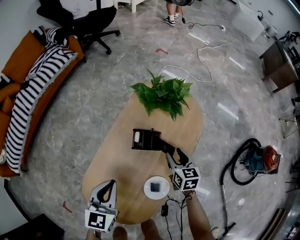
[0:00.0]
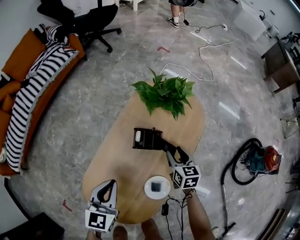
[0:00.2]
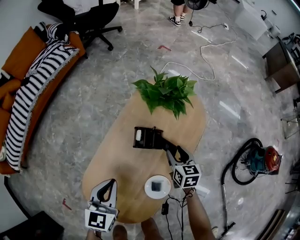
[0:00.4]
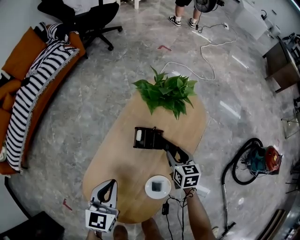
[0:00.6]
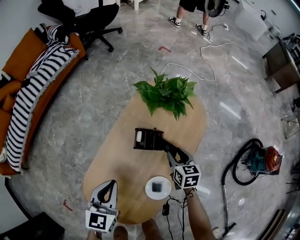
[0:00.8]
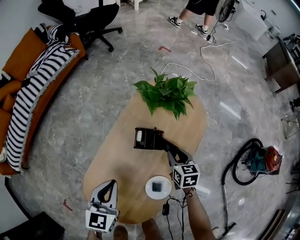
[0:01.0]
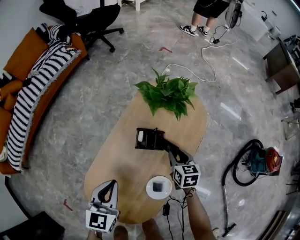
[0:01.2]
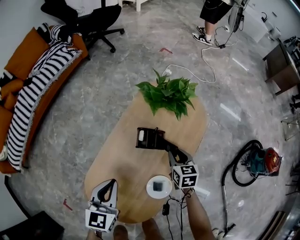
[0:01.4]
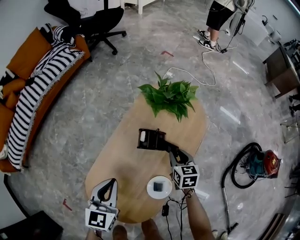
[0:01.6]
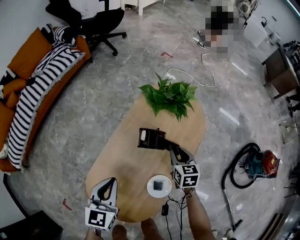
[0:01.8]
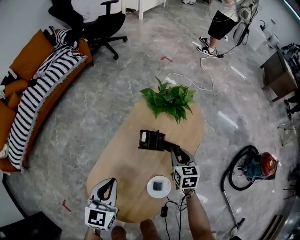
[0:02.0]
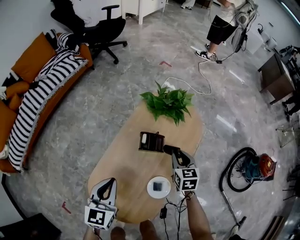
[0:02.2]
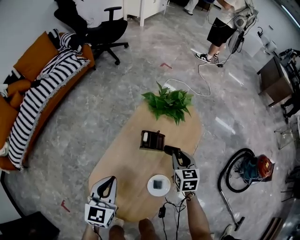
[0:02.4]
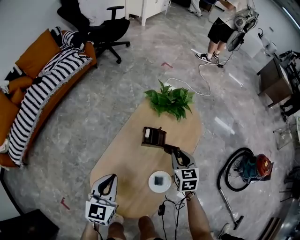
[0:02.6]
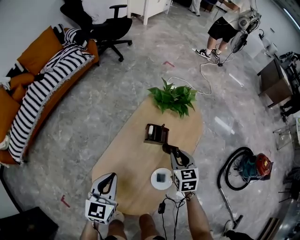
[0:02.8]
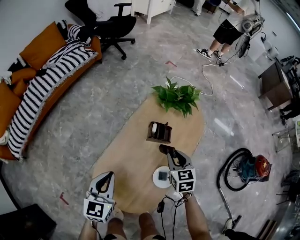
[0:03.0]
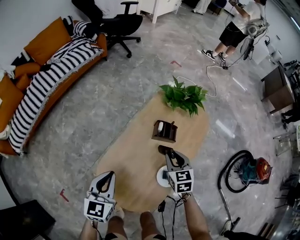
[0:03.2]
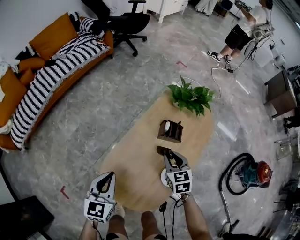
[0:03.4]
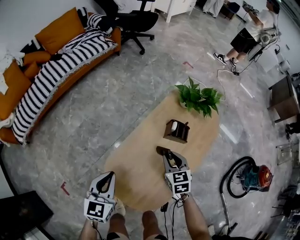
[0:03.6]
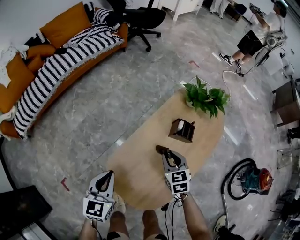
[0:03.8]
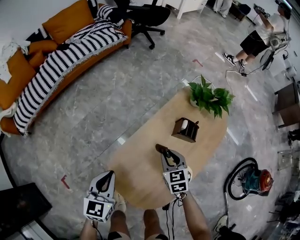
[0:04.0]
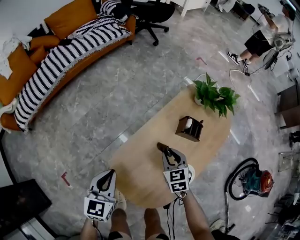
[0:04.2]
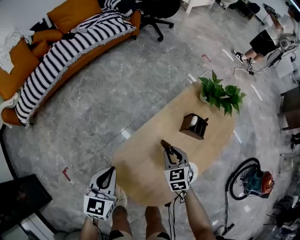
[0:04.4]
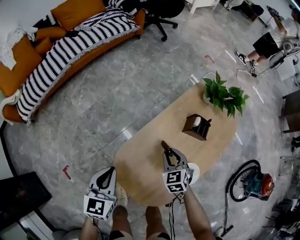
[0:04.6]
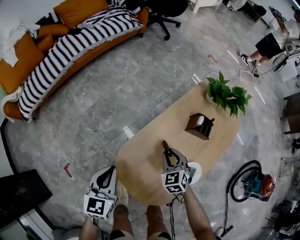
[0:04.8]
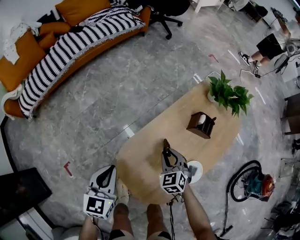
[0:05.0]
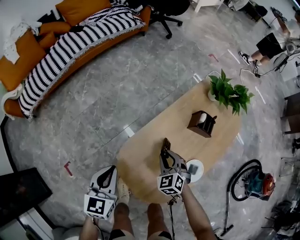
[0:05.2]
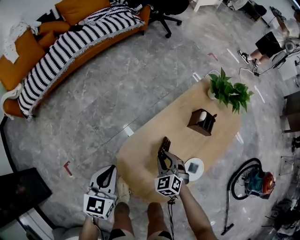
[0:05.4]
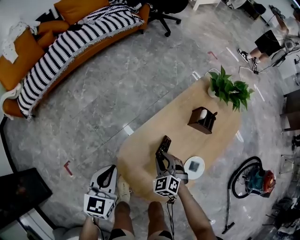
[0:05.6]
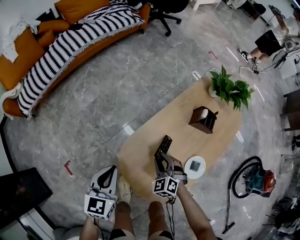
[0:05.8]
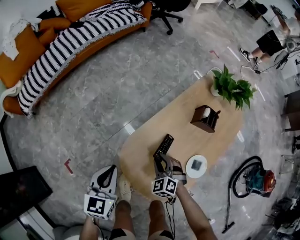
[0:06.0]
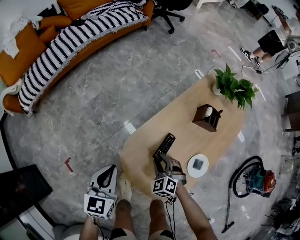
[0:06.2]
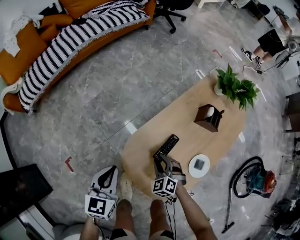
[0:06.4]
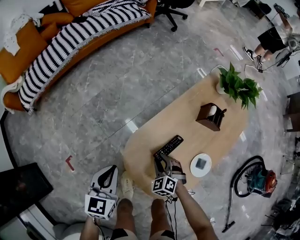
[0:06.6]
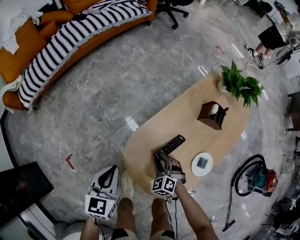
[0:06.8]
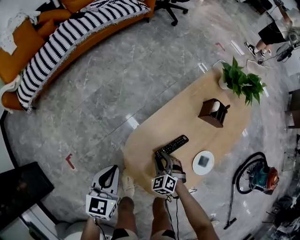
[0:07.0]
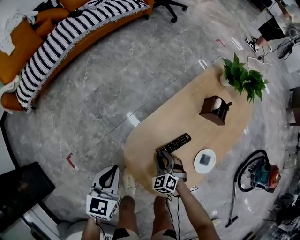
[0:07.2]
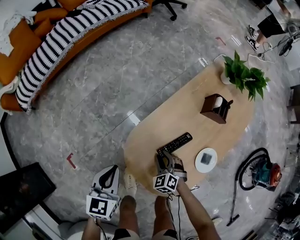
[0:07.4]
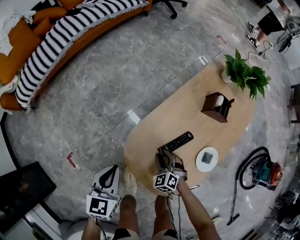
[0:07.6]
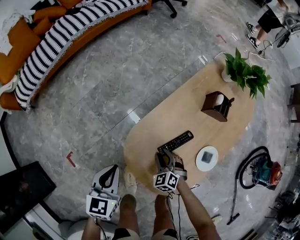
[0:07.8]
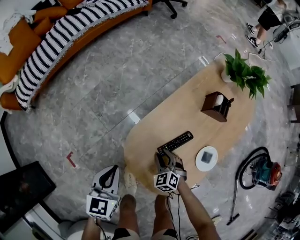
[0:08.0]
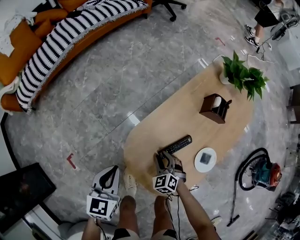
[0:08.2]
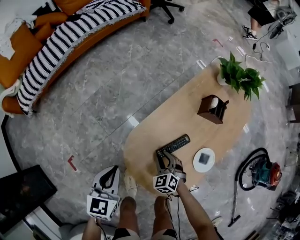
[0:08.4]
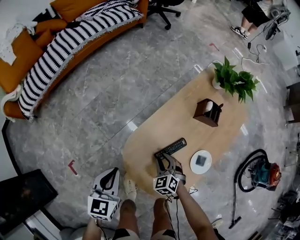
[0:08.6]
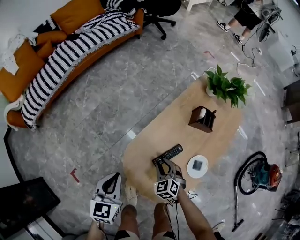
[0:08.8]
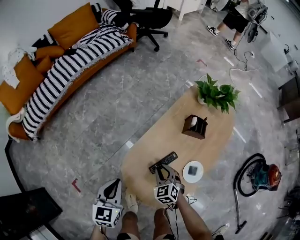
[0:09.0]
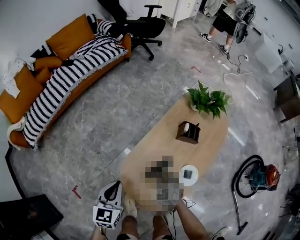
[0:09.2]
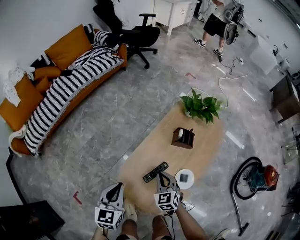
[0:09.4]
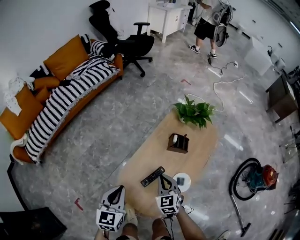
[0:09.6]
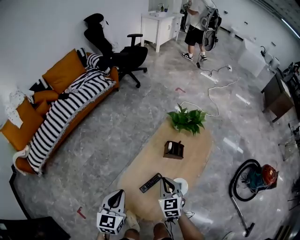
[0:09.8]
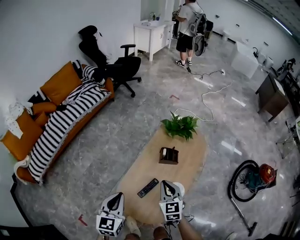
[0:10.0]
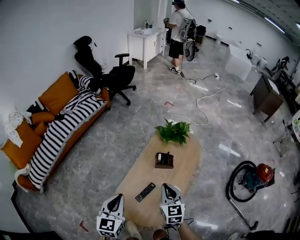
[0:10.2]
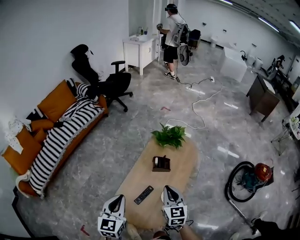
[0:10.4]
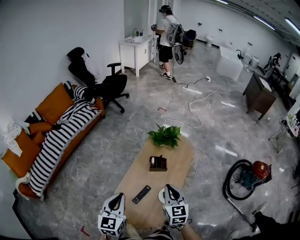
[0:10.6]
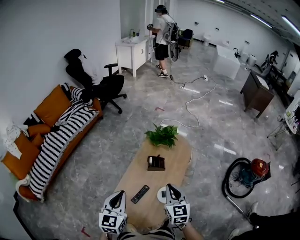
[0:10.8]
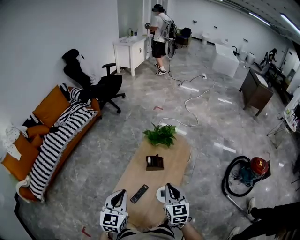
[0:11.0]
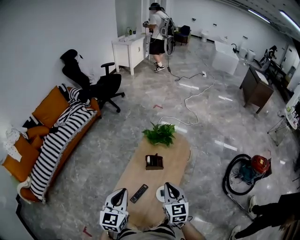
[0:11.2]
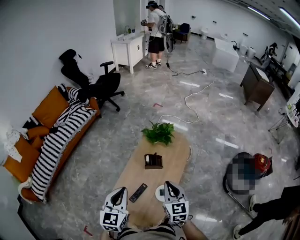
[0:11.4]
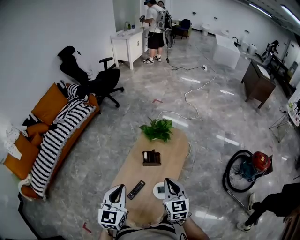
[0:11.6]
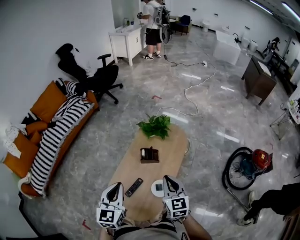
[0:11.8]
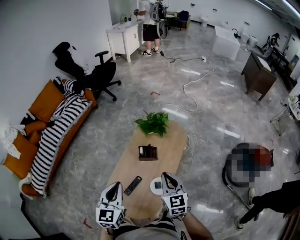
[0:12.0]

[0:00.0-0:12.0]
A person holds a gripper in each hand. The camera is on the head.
0:00.0 to 0:01.6: The grippers stay close to where they were, moving slightly.
0:01.6 to 0:03.0: The right gripper is displaced upward, backward and to the left by about 15 cm, while the left gripper goes about 10 cm to the left and backward.
0:03.0 to 0:04.4: The grippers both shift to the left and downward by approximately 20 cm. The right gripper rotates roughly 20 degrees.
0:04.4 to 0:06.0: The left gripper changes place by roughly 5 cm. The right gripper moves backward, to the left and downward, approximately 15 cm, and swivels about 30 degrees.
0:06.0 to 0:07.6: The left gripper goes approximately 5 cm downward. Meanwhile the right gripper travels downward by approximately 10 cm.
0:07.6 to 0:09.0: The grippers both shift upward by some 10 cm.
0:09.0 to 0:10.4: Both grippers move upward and to the right, approximately 35 cm. The right gripper swivels about 40 degrees, and closes up.
0:10.4 to 0:12.0: The grippers both shift to the right by approximately 10 cm.

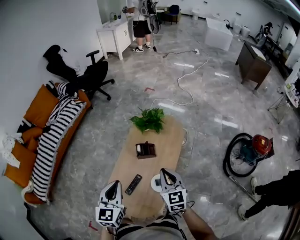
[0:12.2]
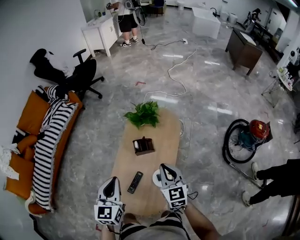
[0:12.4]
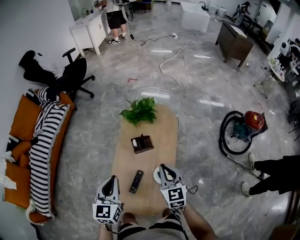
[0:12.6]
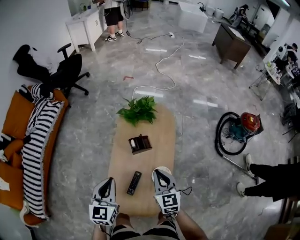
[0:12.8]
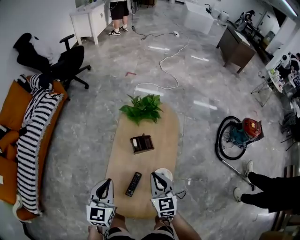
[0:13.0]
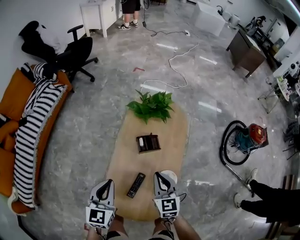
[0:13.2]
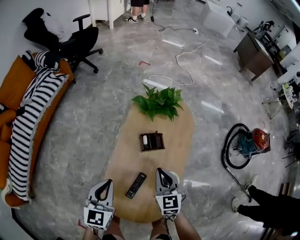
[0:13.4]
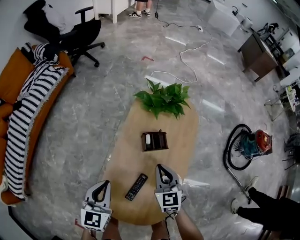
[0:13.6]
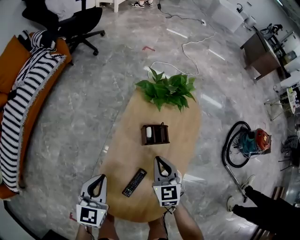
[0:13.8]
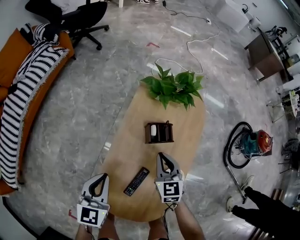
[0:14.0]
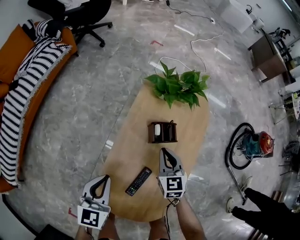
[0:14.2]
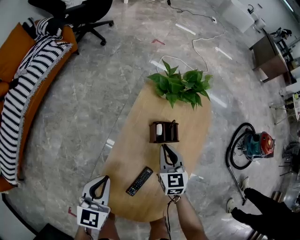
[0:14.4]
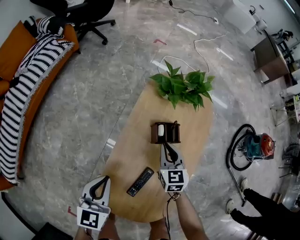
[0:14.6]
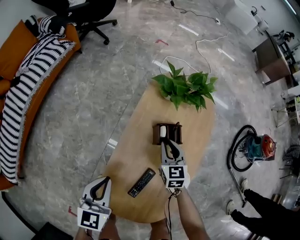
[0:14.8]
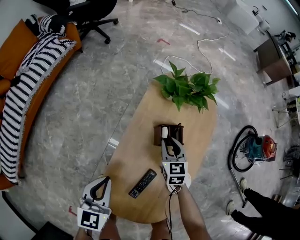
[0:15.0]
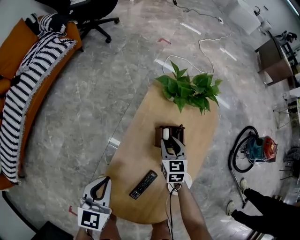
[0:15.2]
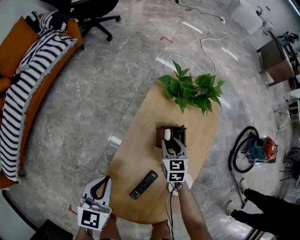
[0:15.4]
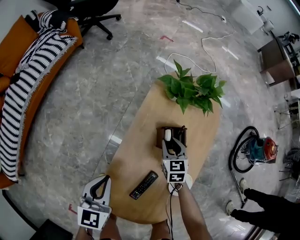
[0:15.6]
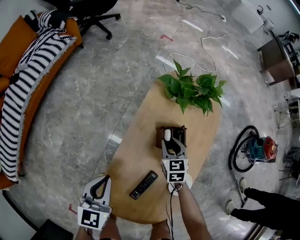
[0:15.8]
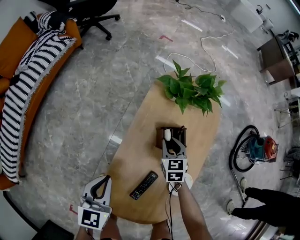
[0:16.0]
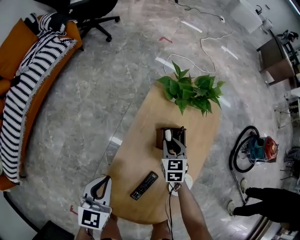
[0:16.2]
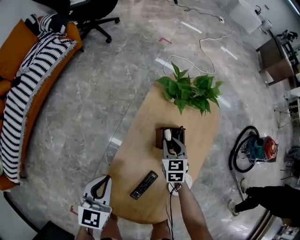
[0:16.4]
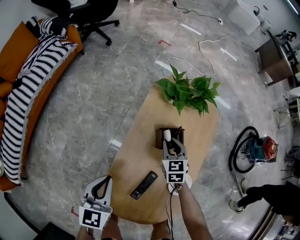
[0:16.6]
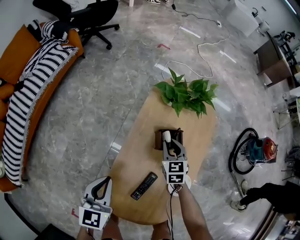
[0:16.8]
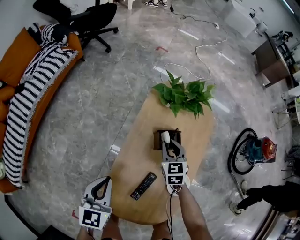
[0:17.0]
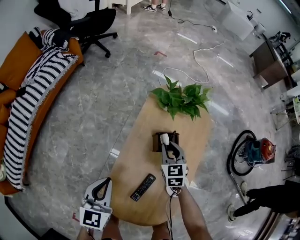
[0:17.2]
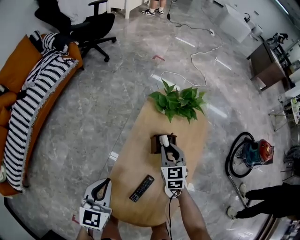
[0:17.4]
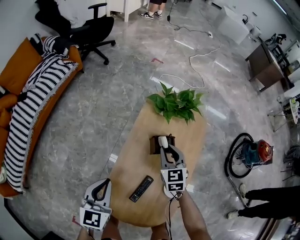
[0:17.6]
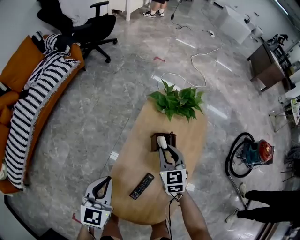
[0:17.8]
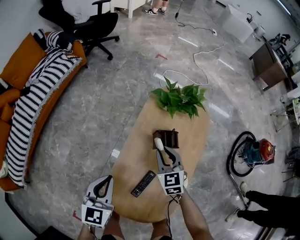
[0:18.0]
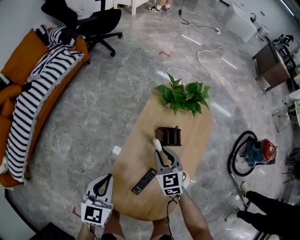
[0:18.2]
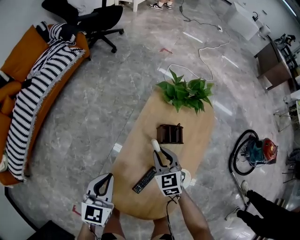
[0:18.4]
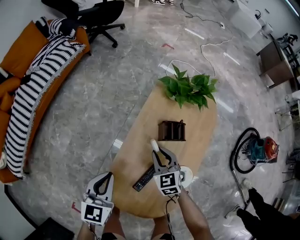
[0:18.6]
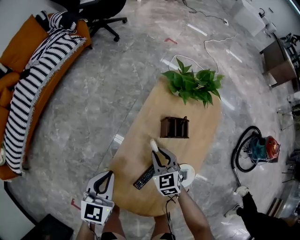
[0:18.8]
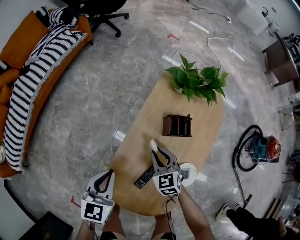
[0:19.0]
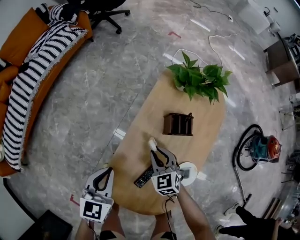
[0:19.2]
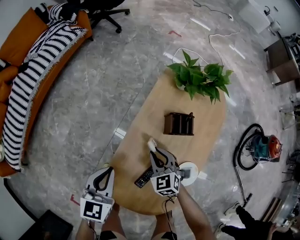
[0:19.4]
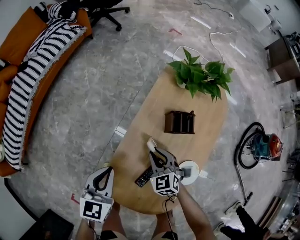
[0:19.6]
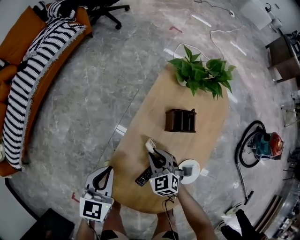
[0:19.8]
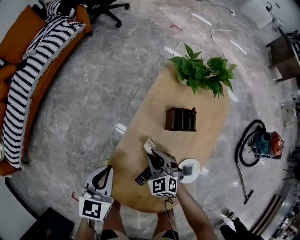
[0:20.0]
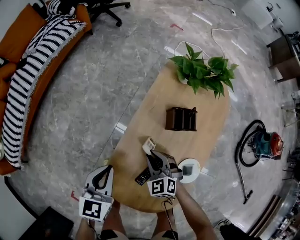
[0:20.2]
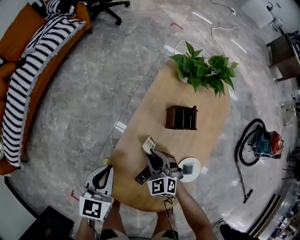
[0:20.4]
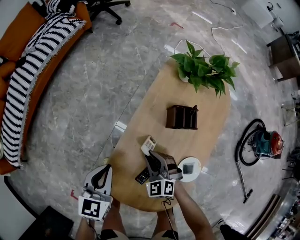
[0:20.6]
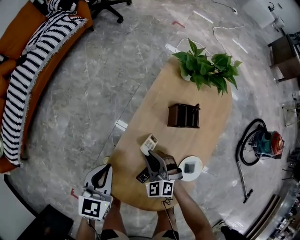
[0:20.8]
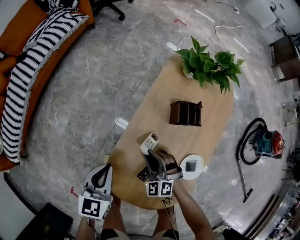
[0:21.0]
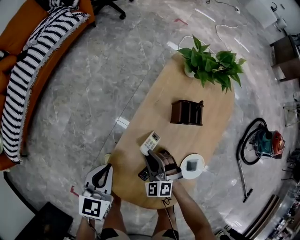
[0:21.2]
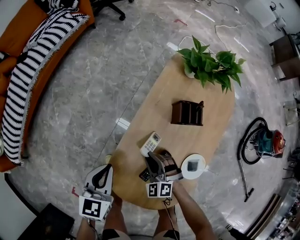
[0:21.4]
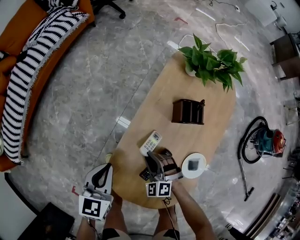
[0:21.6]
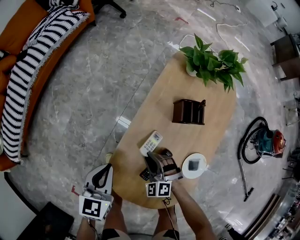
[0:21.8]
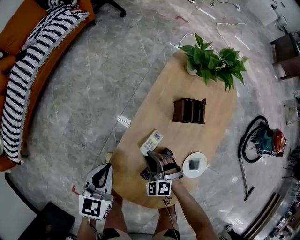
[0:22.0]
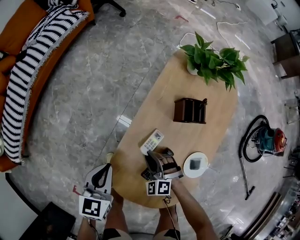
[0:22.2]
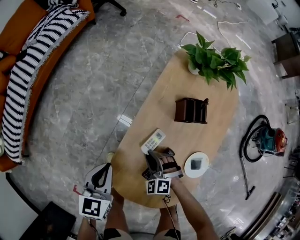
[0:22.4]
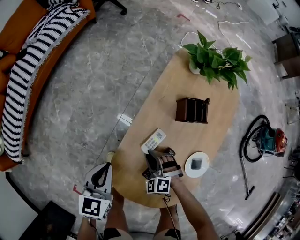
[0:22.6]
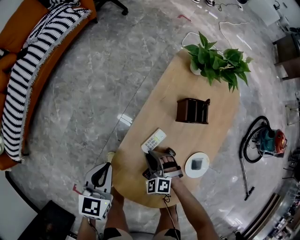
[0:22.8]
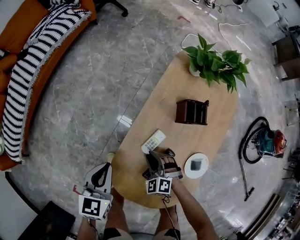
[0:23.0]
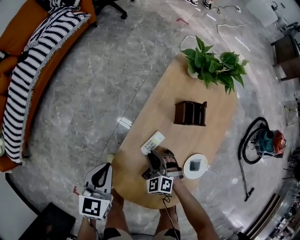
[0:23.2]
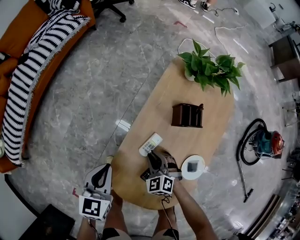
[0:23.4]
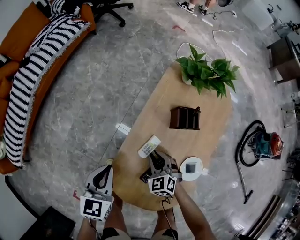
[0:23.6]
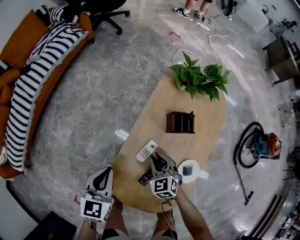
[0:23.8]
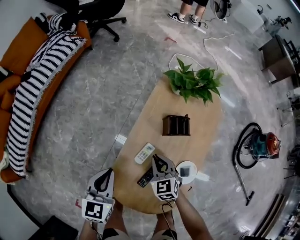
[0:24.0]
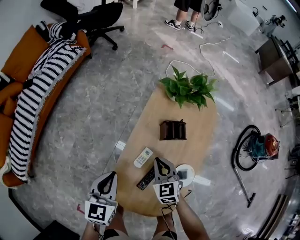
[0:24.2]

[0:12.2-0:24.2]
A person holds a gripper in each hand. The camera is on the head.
0:12.2 to 0:13.8: Both grippers travel together downward and to the left, some 30 cm.
0:13.8 to 0:15.2: The right gripper is displaced downward and forward by roughly 15 cm, and opens up.
0:15.2 to 0:16.6: The grippers move only a little.
0:16.6 to 0:18.2: The left gripper moves upward, roughly 5 cm; the right gripper goes some 10 cm upward and backward.
0:18.2 to 0:19.8: The right gripper heads downward, backward and to the left, covering about 15 cm. Meanwhile the left gripper shifts roughly 10 cm downward.
0:19.8 to 0:21.2: The right gripper moves backward, approximately 5 cm, and turns by approximately 20 degrees.
0:21.2 to 0:22.6: The right gripper moves downward, approximately 5 cm.
0:22.6 to 0:24.2: The left gripper is displaced upward by about 10 cm. The right gripper heads upward and forward, covering roughly 20 cm, and twists some 40 degrees clockwise, seen from behind.
